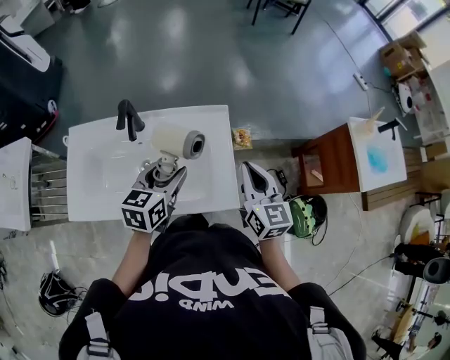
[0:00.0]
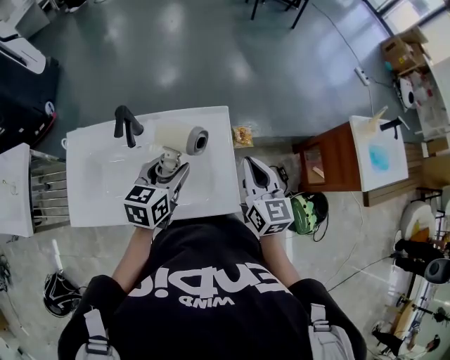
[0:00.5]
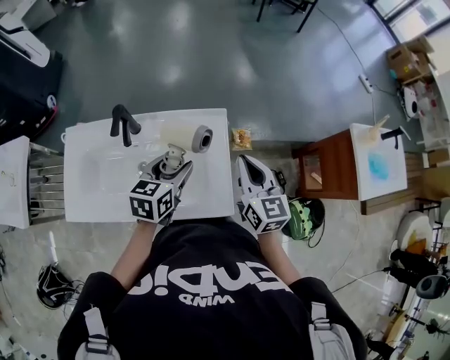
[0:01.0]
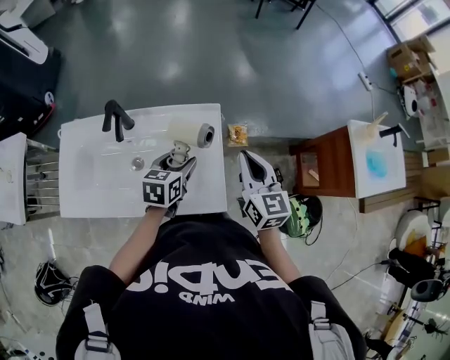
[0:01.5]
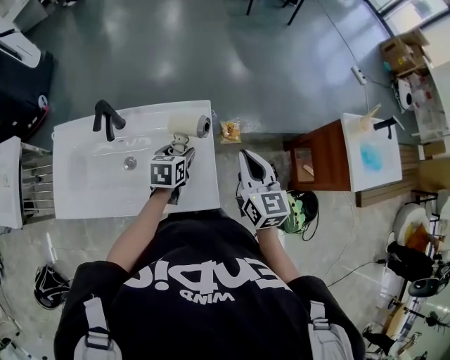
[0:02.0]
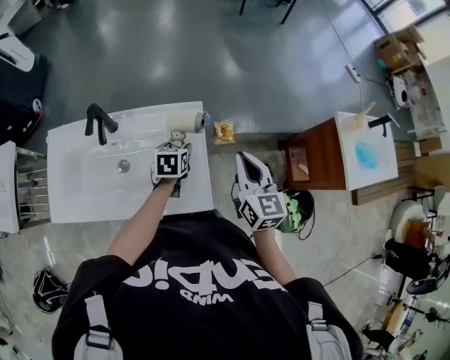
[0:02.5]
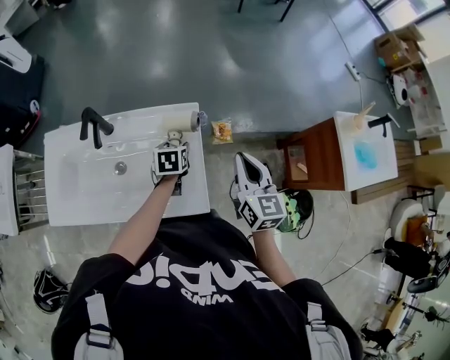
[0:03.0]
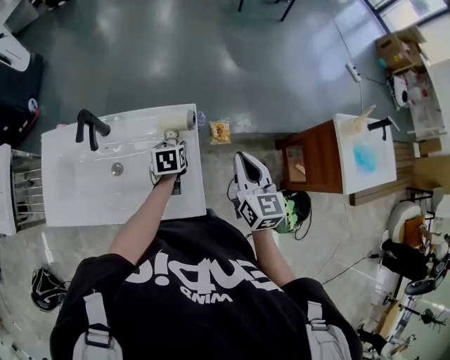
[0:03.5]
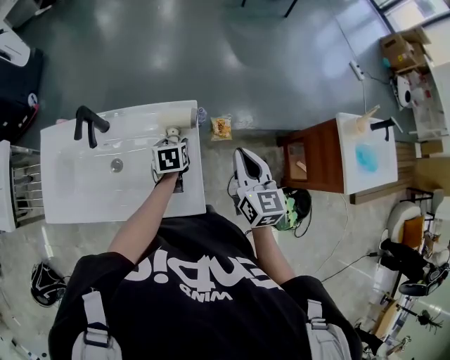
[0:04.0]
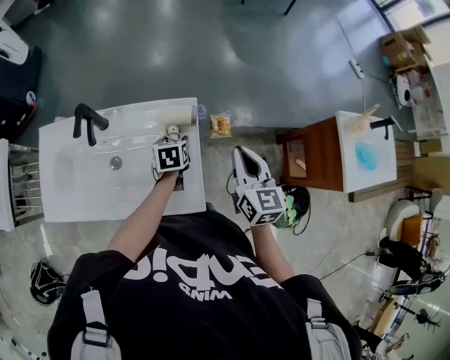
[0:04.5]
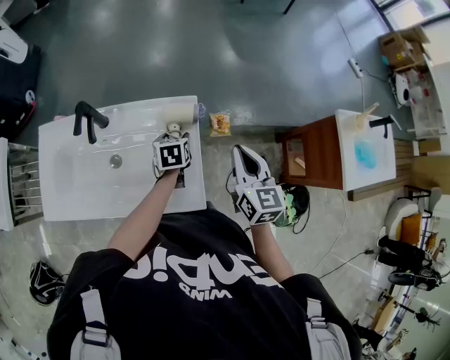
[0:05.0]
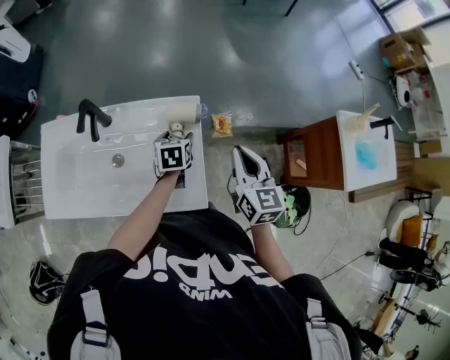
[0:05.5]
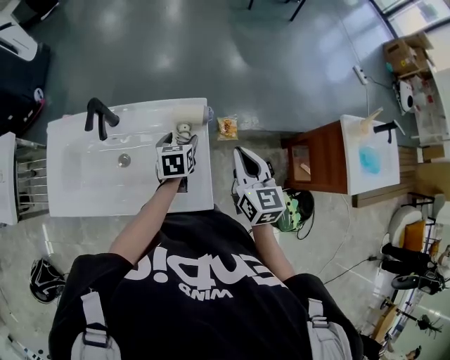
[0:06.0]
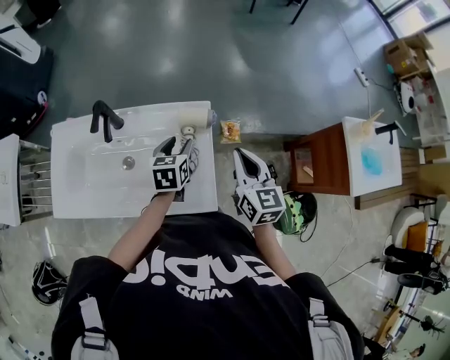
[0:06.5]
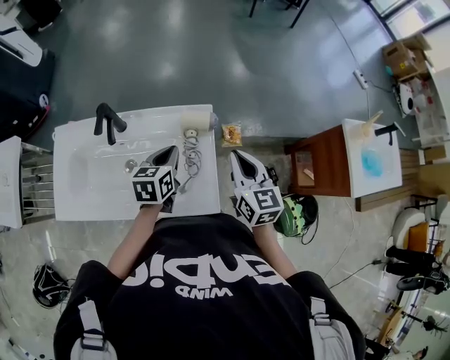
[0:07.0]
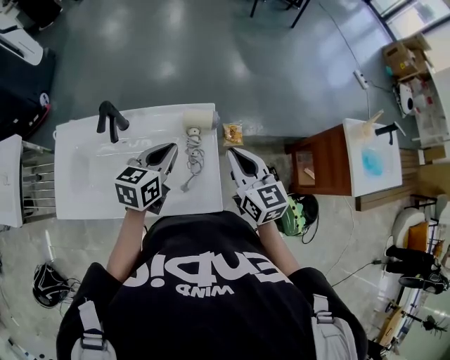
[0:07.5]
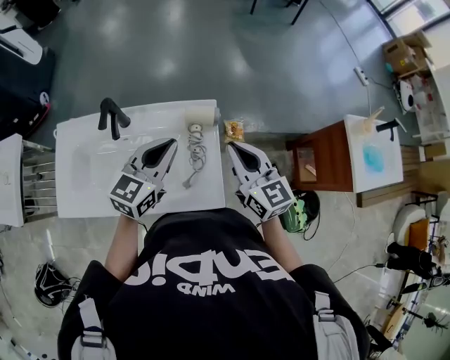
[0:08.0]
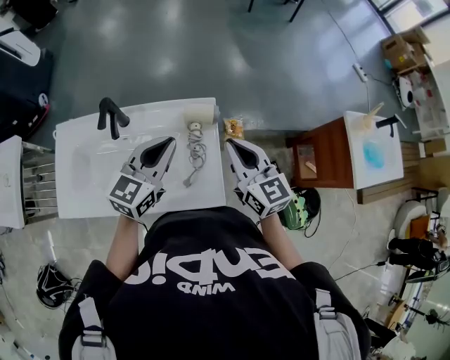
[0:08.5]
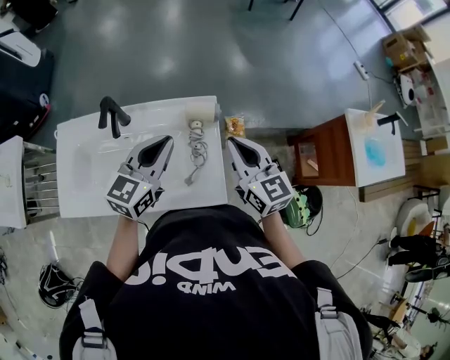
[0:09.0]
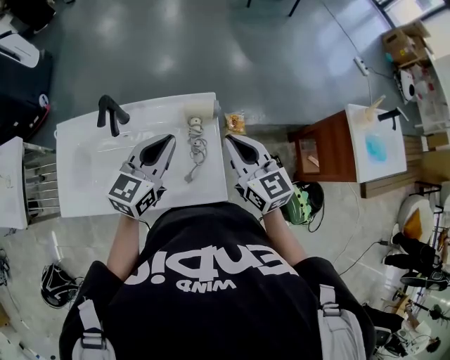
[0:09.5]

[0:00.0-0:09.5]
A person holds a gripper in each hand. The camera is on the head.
0:00.0 to 0:02.0: The left gripper is displaced downward, forward and to the right by some 15 cm; the right gripper goes approximately 5 cm to the right.
0:02.0 to 0:04.0: The right gripper shifts by about 5 cm. Meanwhile the left gripper goes some 5 cm downward.
0:04.0 to 0:05.5: There are only small adjustments of the grippers.
0:05.5 to 0:07.5: The right gripper is displaced to the left by some 5 cm; the left gripper moves upward, about 15 cm, turns by some 30 degrees, and closes its fingers.
0:07.5 to 0:09.5: The left gripper heads upward, covering approximately 5 cm, and rotates roughly 20 degrees.

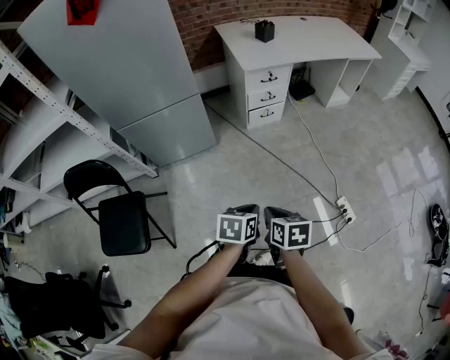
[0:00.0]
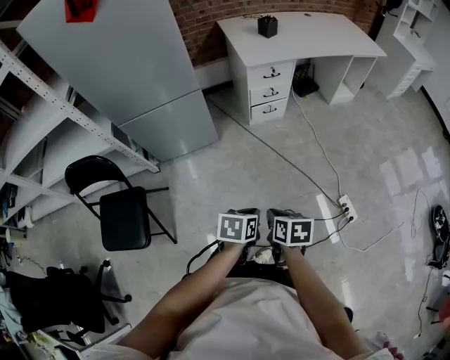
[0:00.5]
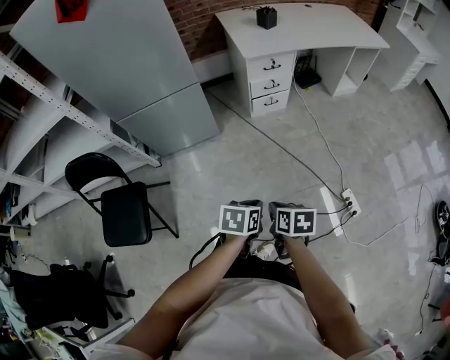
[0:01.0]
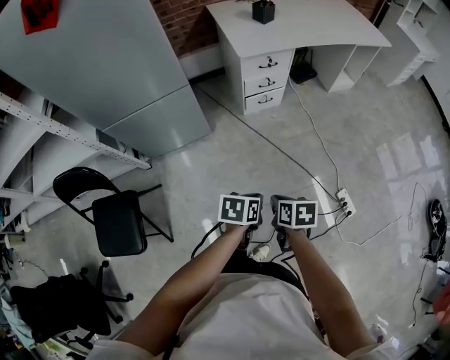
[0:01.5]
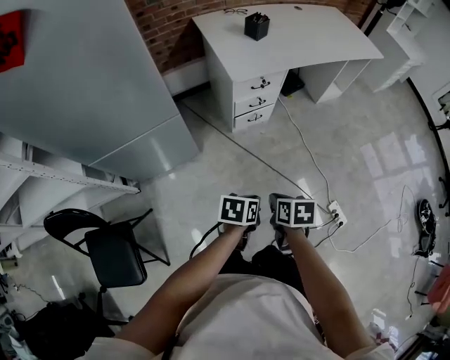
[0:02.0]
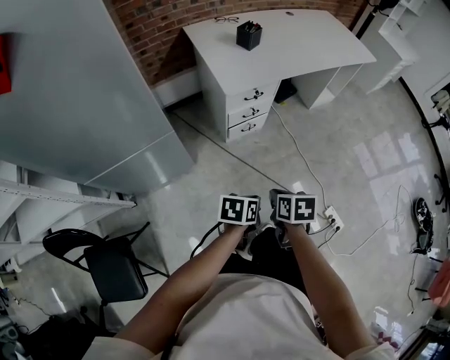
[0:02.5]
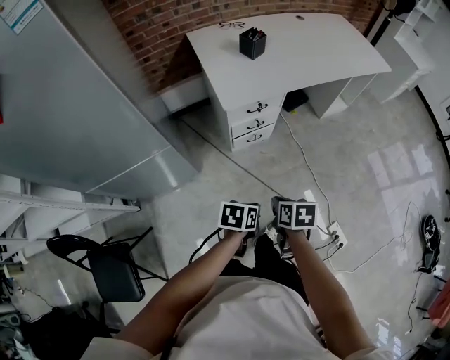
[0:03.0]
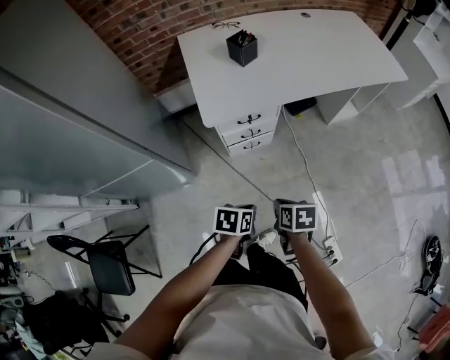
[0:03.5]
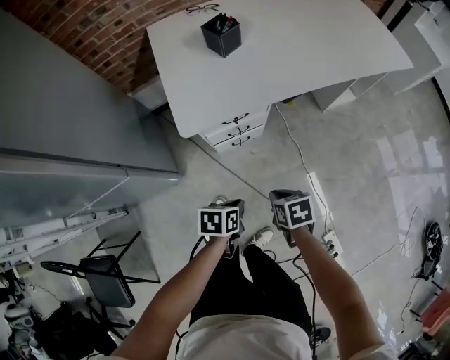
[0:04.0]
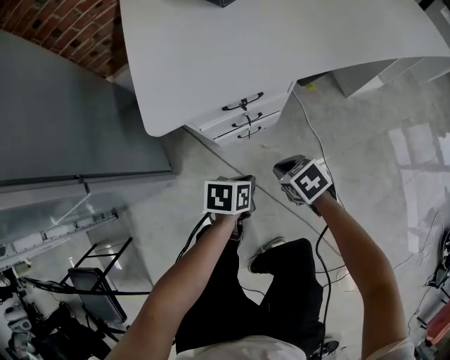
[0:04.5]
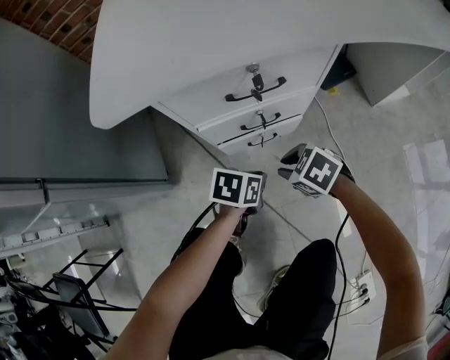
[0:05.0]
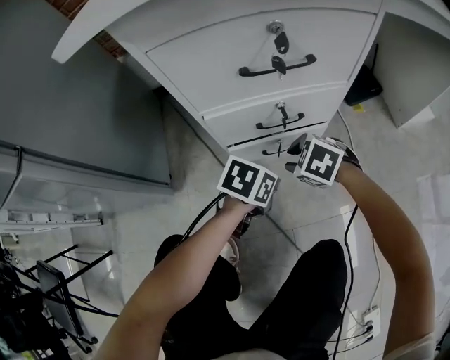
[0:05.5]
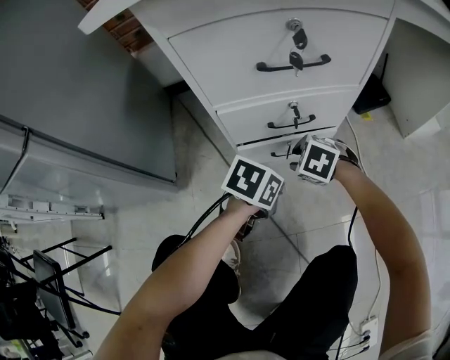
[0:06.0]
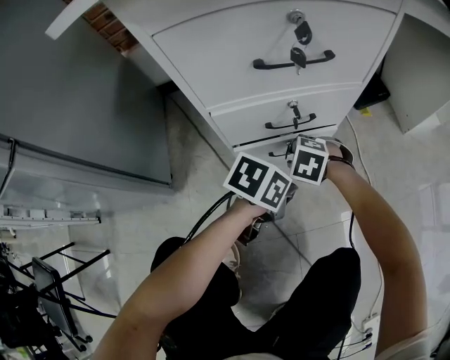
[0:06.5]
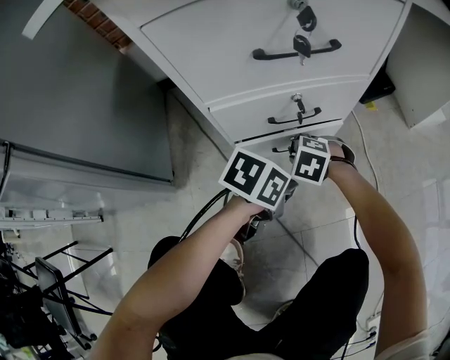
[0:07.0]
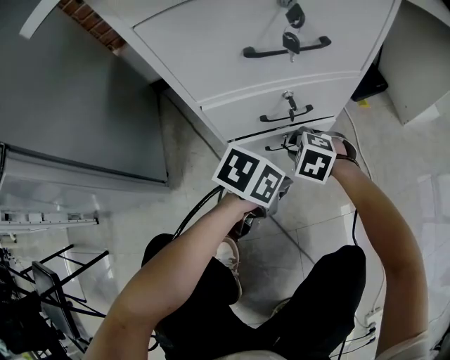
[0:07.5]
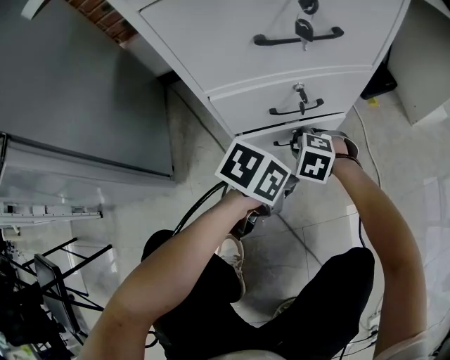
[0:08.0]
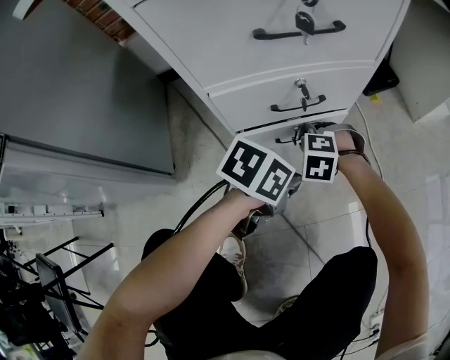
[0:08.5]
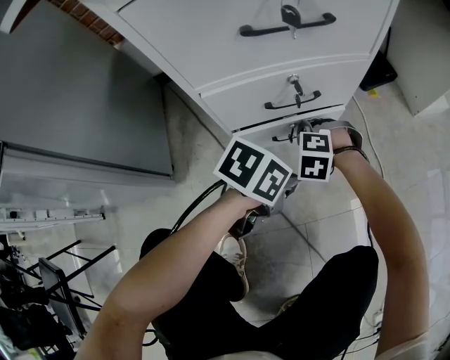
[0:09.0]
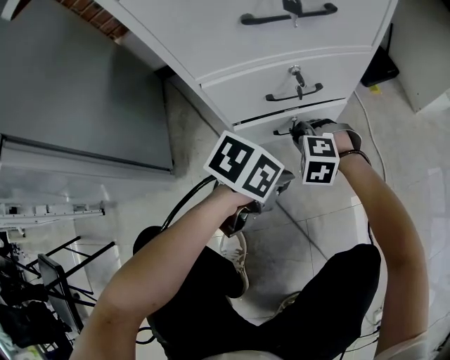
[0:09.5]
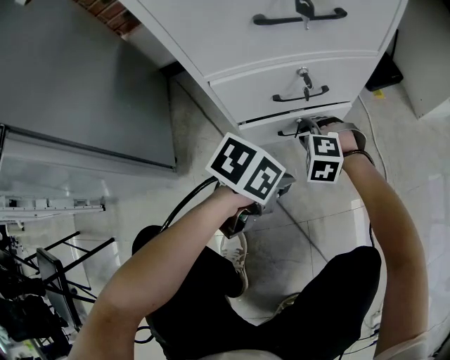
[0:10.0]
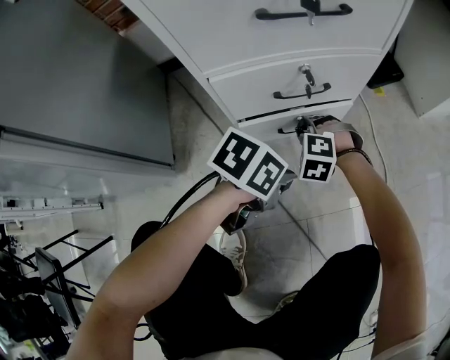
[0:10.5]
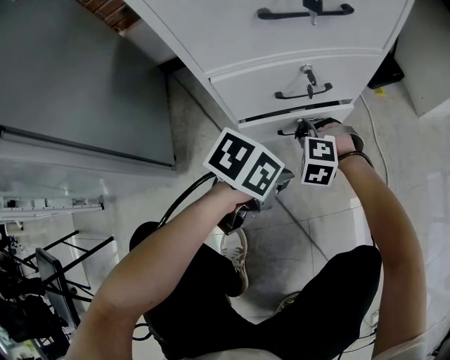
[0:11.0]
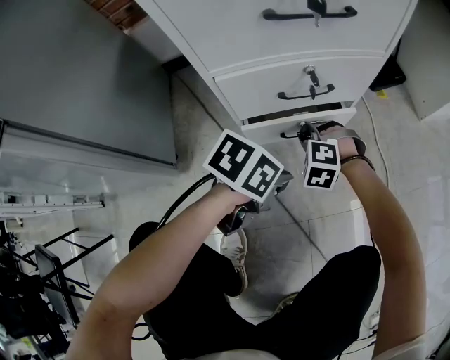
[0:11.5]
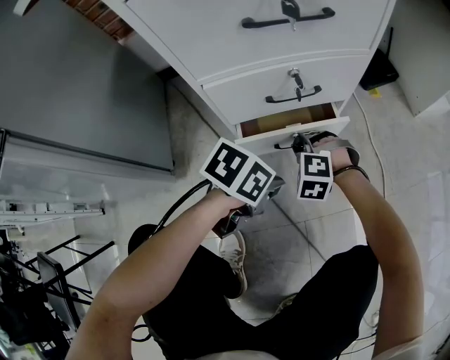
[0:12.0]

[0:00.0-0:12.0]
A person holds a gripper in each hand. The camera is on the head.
0:00.0 to 0:02.0: The grippers both shift forward by roughly 25 cm.
0:02.0 to 0:04.0: Both grippers move forward, approximately 30 cm.
0:04.0 to 0:06.0: The grippers both shift downward by approximately 40 cm. The right gripper rotates around the line of its fingers by roughly 70 degrees, counterclockwise from behind, and opens its fingers.
0:06.0 to 0:08.0: The right gripper goes approximately 5 cm downward.
0:08.0 to 0:12.0: There are only small adjustments of the grippers.

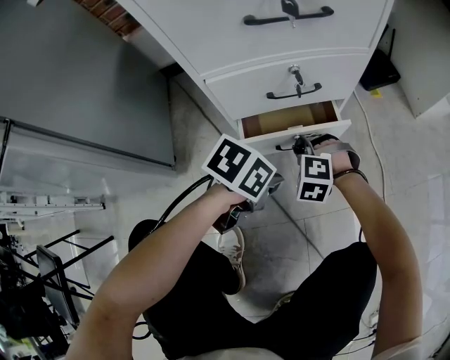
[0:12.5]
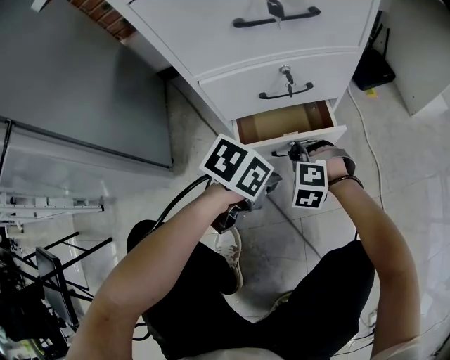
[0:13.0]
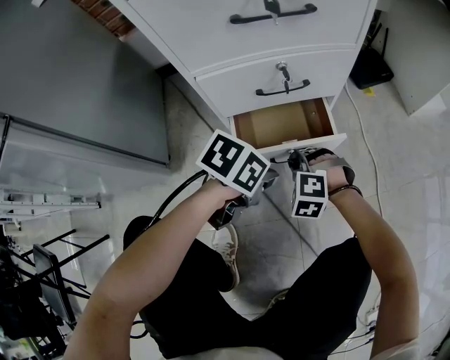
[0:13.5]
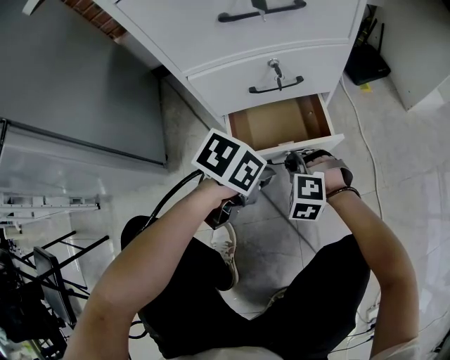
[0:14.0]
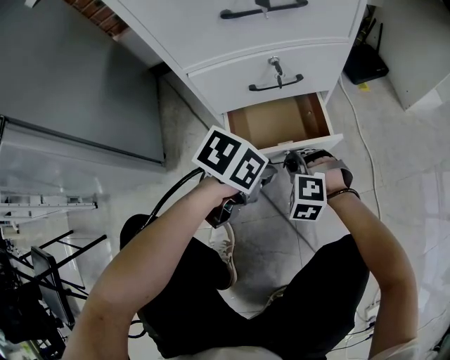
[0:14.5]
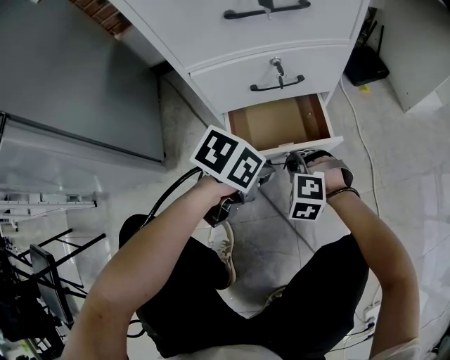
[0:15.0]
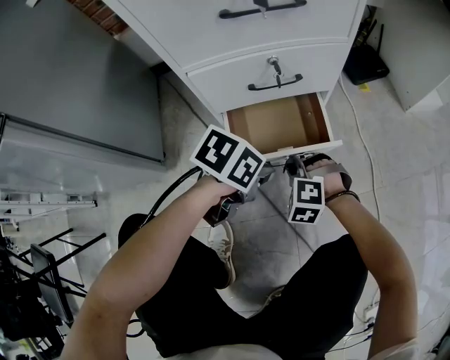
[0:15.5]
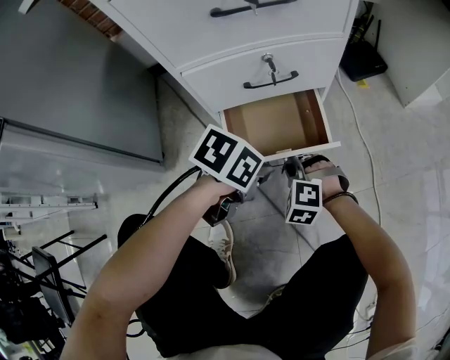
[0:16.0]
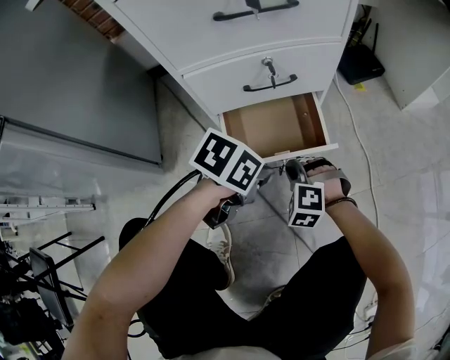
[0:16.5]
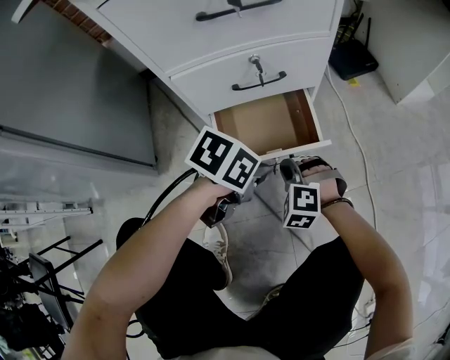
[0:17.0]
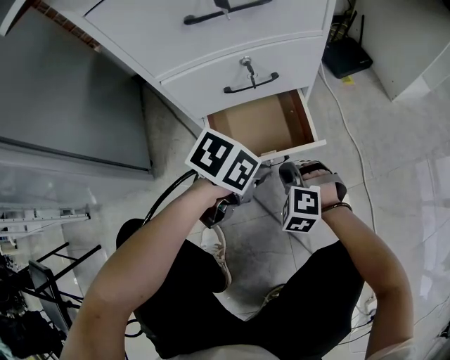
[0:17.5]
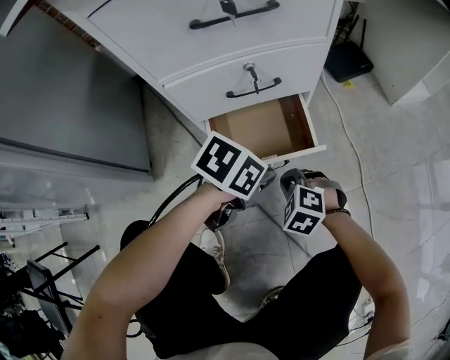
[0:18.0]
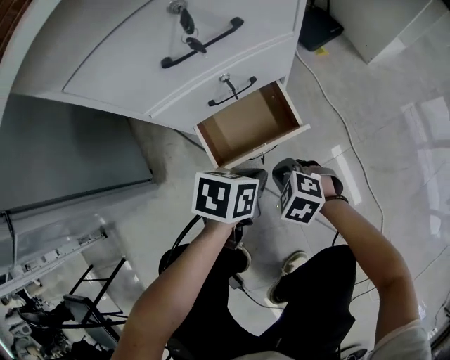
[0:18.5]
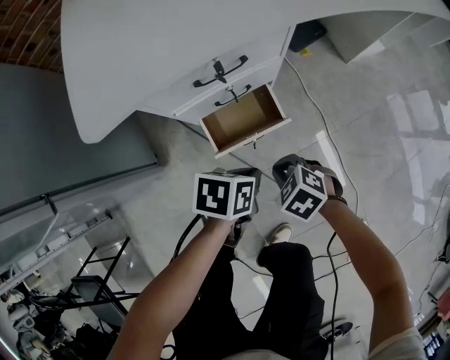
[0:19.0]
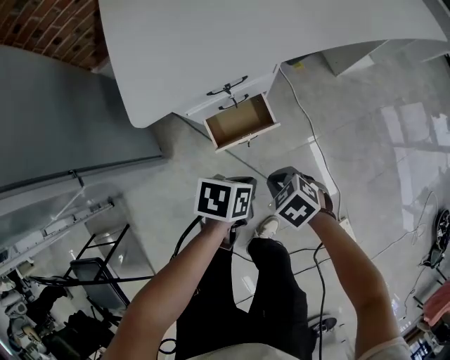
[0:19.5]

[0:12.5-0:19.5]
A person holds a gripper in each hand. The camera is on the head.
0:12.5 to 0:14.5: The right gripper ends up some 5 cm from where it was.
0:14.5 to 0:17.5: The grippers stay close to where they were, moving slightly.
0:17.5 to 0:19.5: Both grippers travel together upward, about 30 cm. The right gripper rotates around the line of its fingers by approximately 50 degrees, clockwise from behind.
